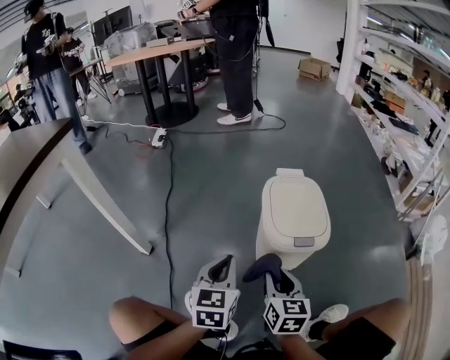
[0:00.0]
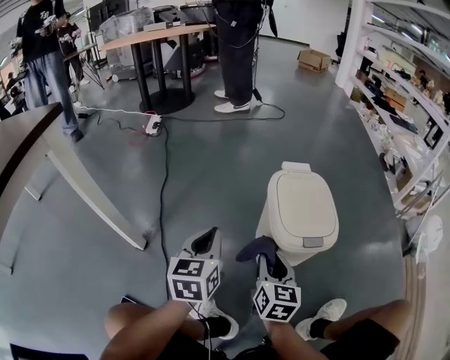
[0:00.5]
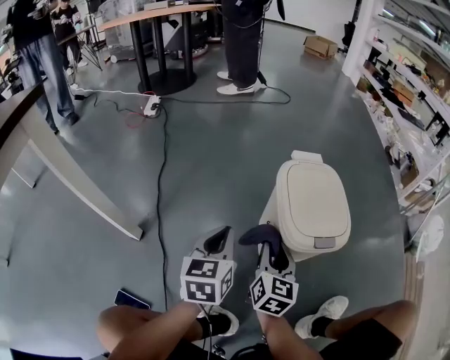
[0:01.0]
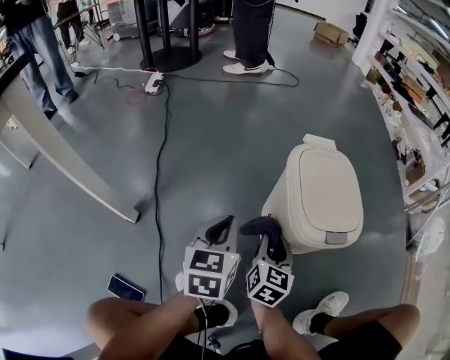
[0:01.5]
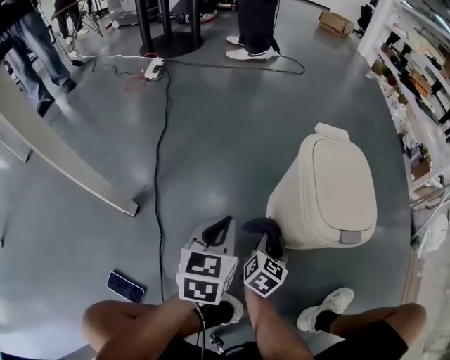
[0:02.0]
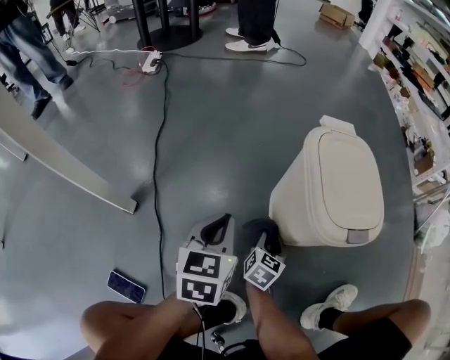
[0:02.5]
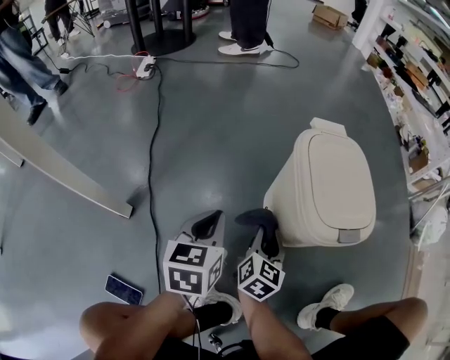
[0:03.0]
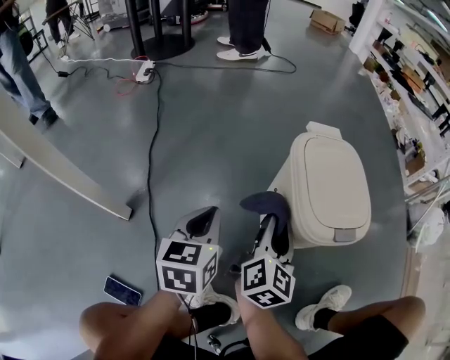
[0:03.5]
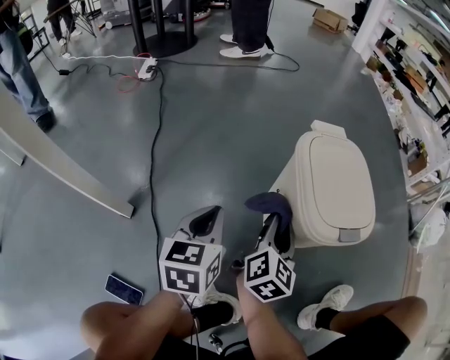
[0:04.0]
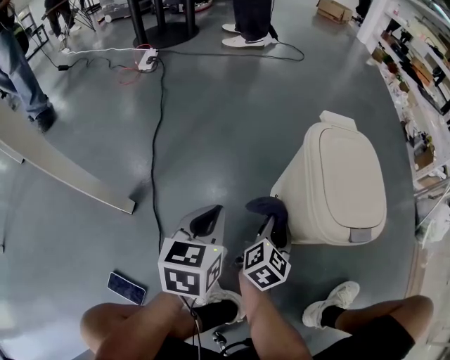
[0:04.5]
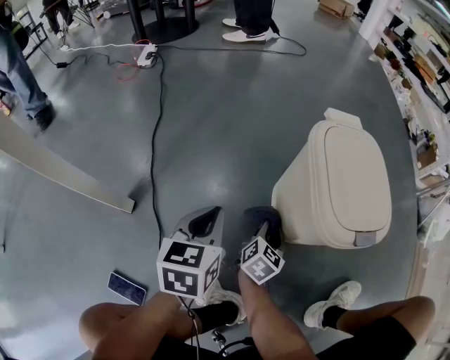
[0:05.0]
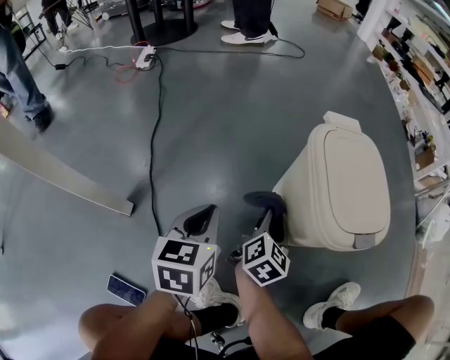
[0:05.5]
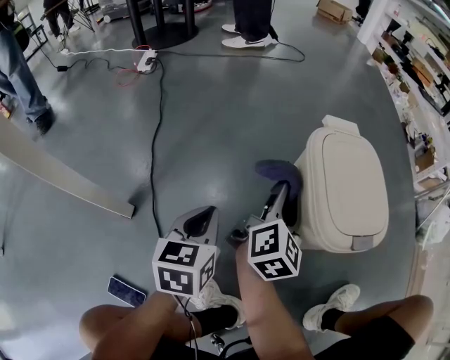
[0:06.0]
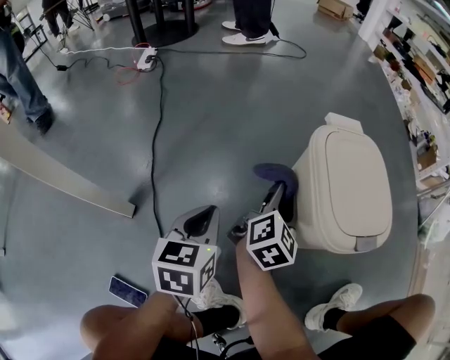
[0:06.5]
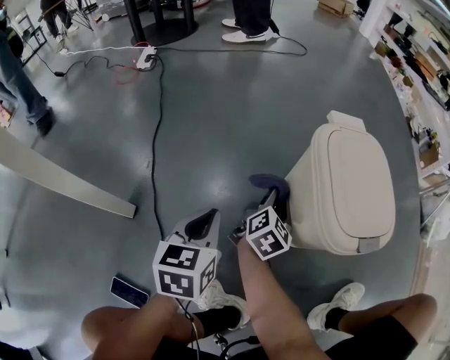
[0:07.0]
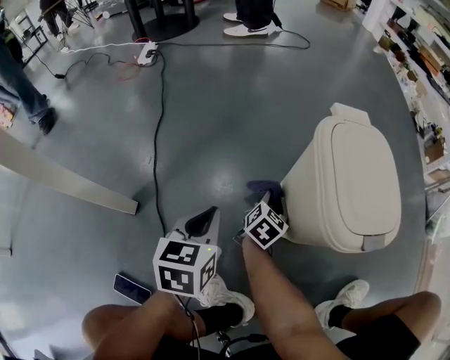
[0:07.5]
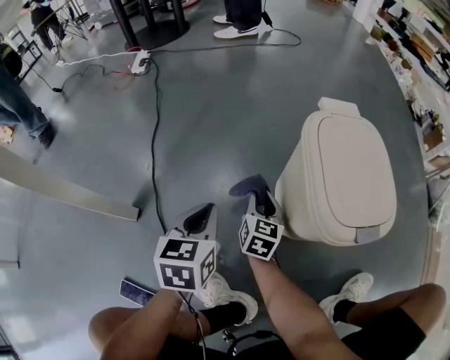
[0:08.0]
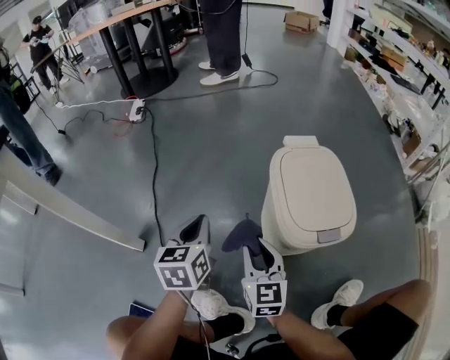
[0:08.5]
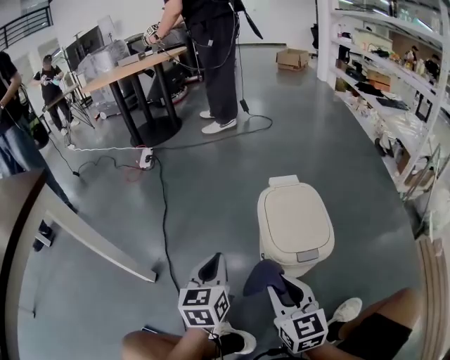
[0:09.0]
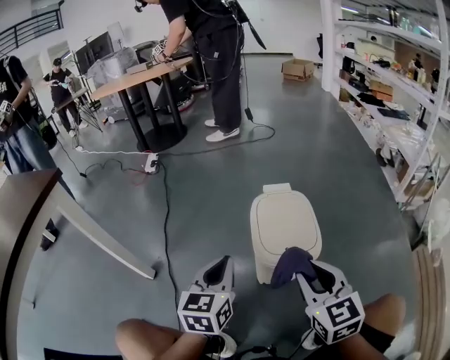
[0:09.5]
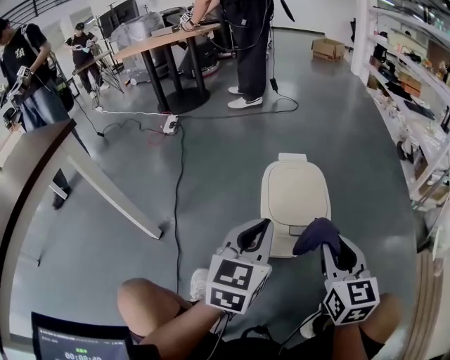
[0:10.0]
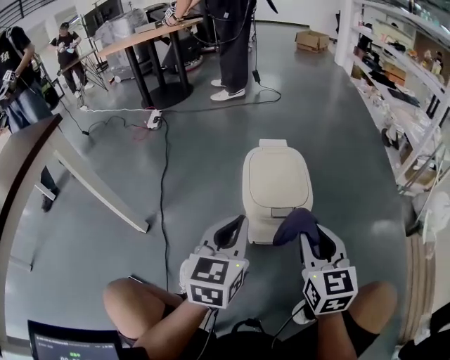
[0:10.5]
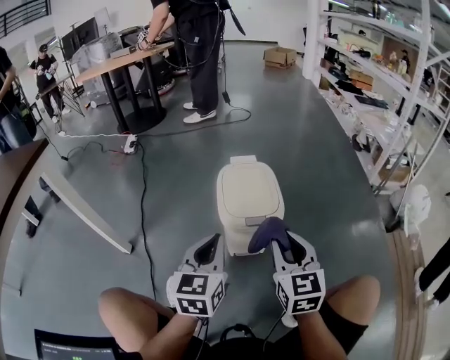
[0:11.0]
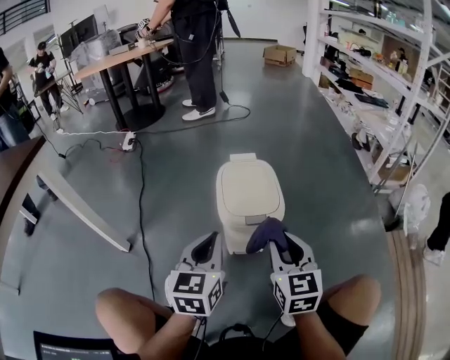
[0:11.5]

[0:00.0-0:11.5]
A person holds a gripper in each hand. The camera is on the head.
0:00.0 to 0:02.0: The left gripper moves downward, forward and to the left, about 15 cm; the right gripper moves downward and forward, roughly 20 cm, and turns by about 30 degrees.
0:02.0 to 0:04.0: The right gripper shifts approximately 10 cm upward, and swivels approximately 20 degrees.
0:04.0 to 0:06.0: The right gripper is displaced forward by approximately 5 cm, and goes downward and returns, some 15 cm each way.
0:06.0 to 0:07.5: The right gripper is displaced downward by about 20 cm, and changes its angle by about 30 degrees.
0:07.5 to 0:09.5: The right gripper shifts roughly 50 cm upward and backward, and changes its angle by roughly 50 degrees; the left gripper travels upward and to the right by approximately 25 cm, and rotates about 20 degrees.
0:09.5 to 0:11.5: The left gripper goes roughly 10 cm to the right and backward. The right gripper changes place by some 5 cm.

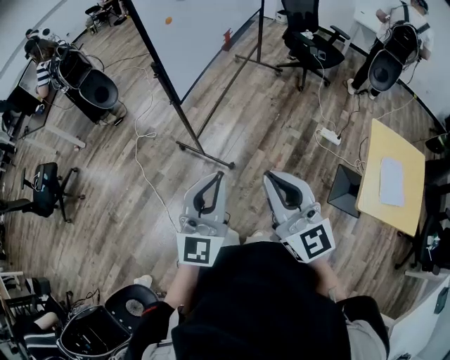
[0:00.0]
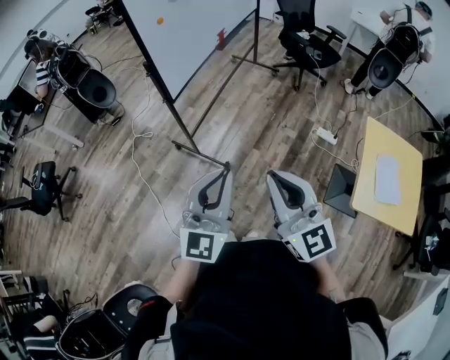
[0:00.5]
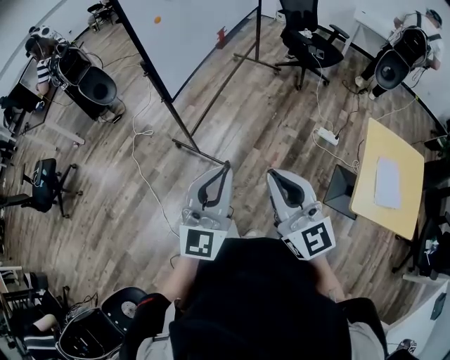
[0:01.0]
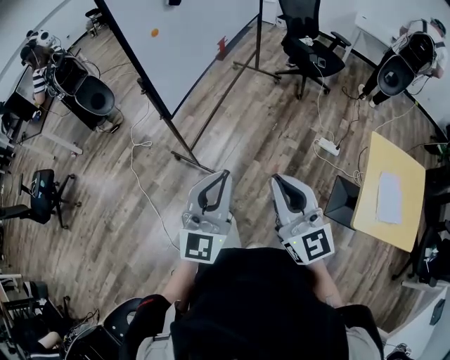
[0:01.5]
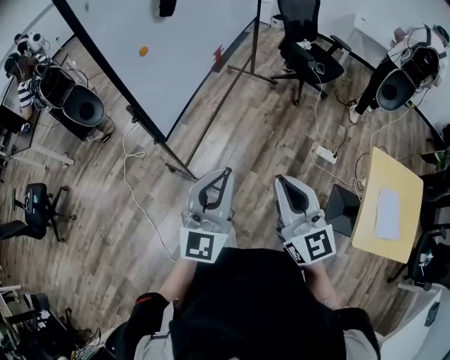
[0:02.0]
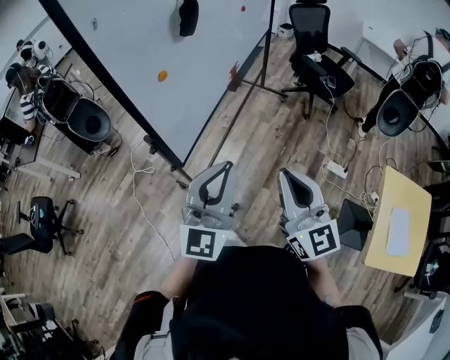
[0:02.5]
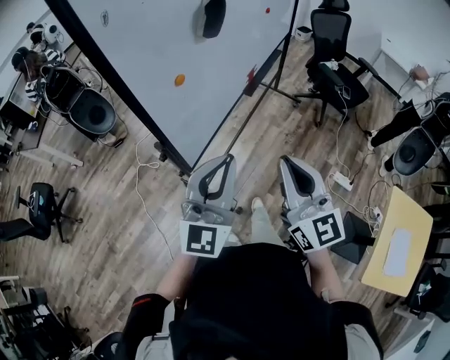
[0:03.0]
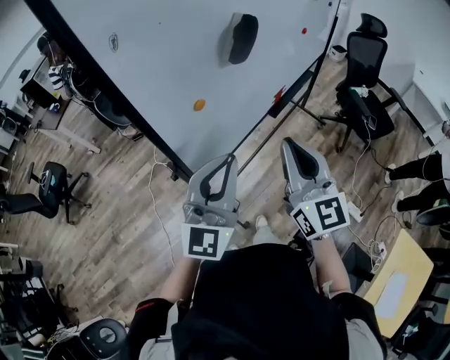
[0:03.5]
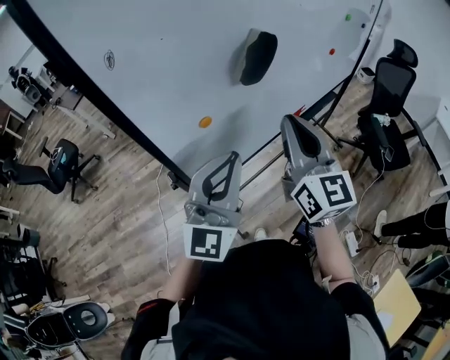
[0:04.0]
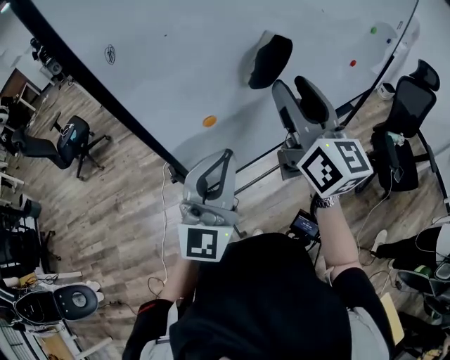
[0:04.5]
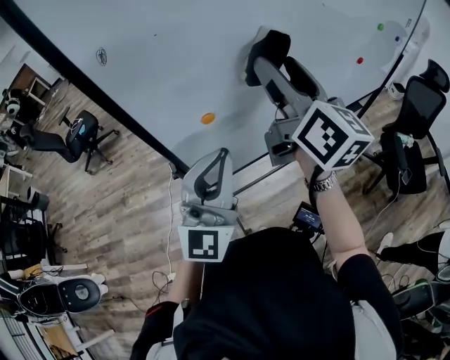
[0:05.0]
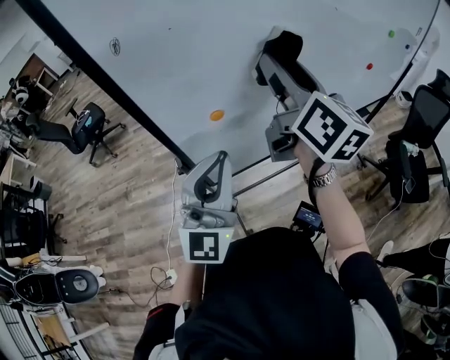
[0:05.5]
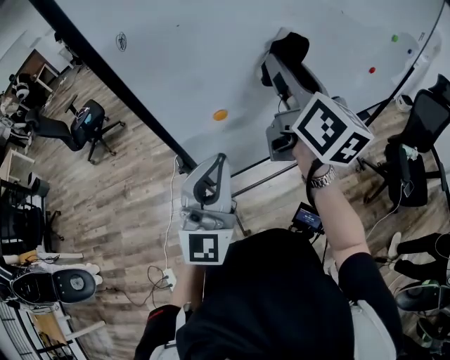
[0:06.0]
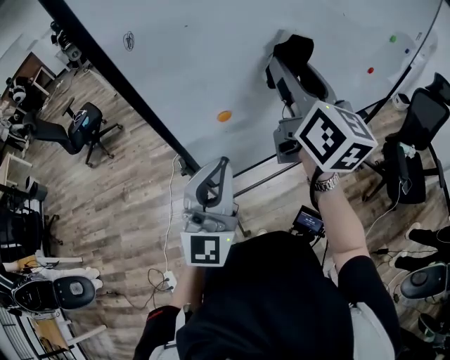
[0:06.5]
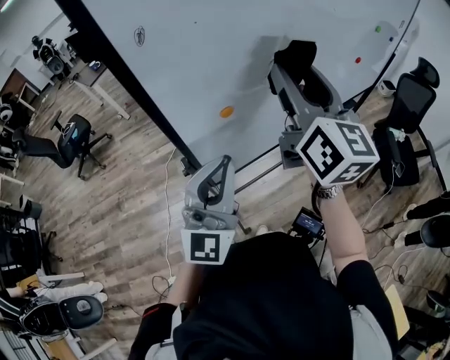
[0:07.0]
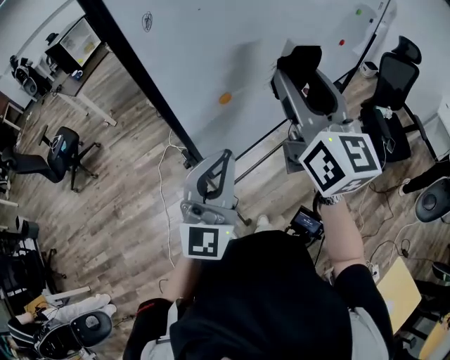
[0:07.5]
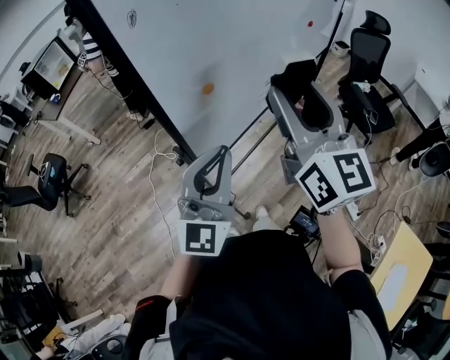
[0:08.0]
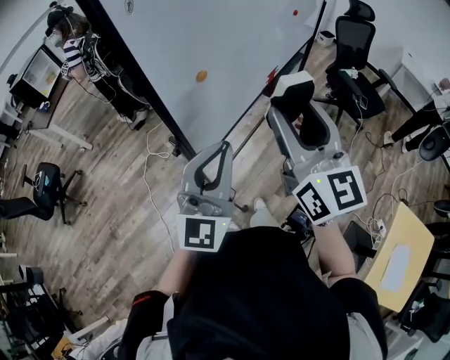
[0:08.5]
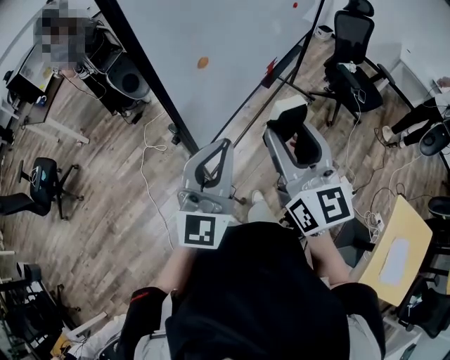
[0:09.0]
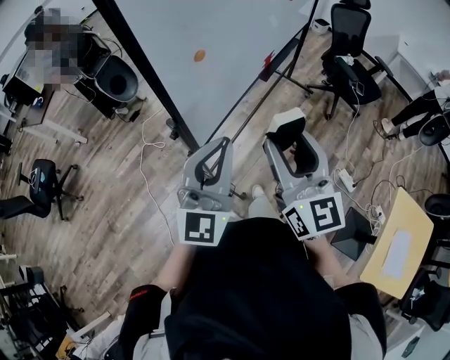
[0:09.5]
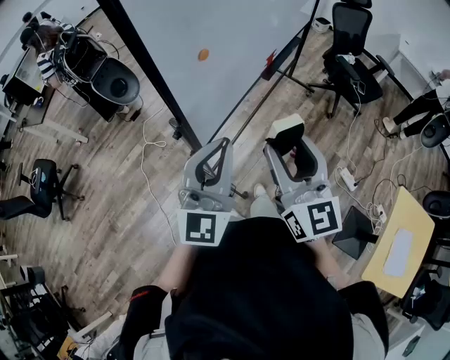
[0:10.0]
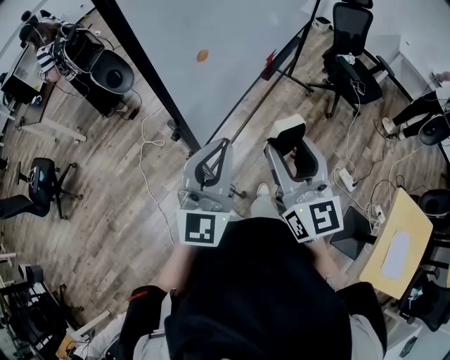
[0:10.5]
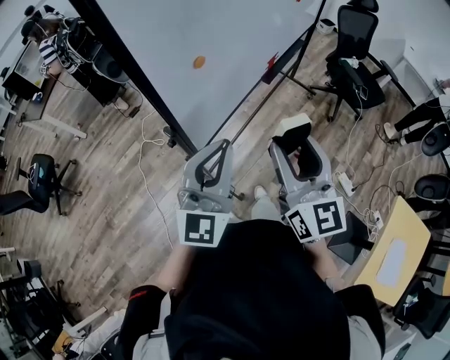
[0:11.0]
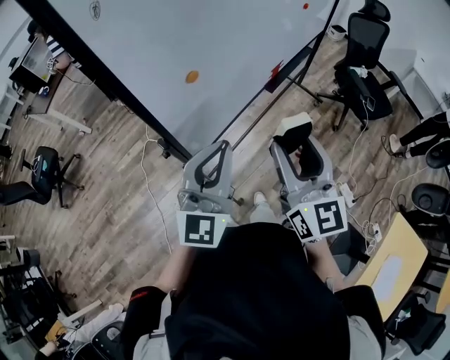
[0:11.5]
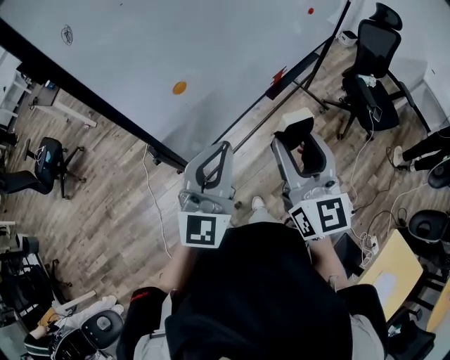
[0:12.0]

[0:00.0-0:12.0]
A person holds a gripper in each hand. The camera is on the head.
0:00.0 to 0:02.0: Both grippers move forward, some 20 cm.
0:02.0 to 0:04.0: Both grippers move forward, approximately 40 cm. The right gripper rotates about 20 degrees, while the left gripper changes its angle by some 30 degrees.
0:04.0 to 0:06.0: The right gripper is displaced forward, upward and to the left by roughly 15 cm, changes its angle by roughly 30 degrees, and opens. The left gripper ends up about 5 cm from where it was, and swivels about 20 degrees.
0:06.0 to 0:08.0: The left gripper goes about 5 cm backward, and swivels roughly 30 degrees; the right gripper shifts about 20 cm backward, and swivels about 30 degrees.
0:08.0 to 0:10.0: The right gripper goes about 20 cm downward and backward; the left gripper shifts by about 5 cm.
0:10.0 to 0:12.0: Both grippers move forward and to the right, roughly 15 cm.

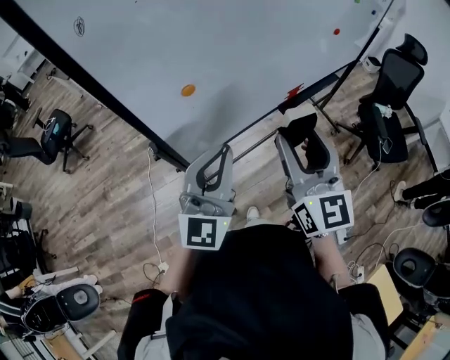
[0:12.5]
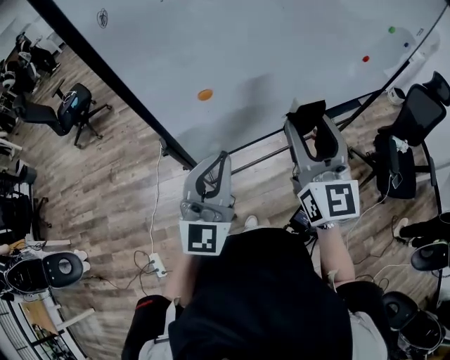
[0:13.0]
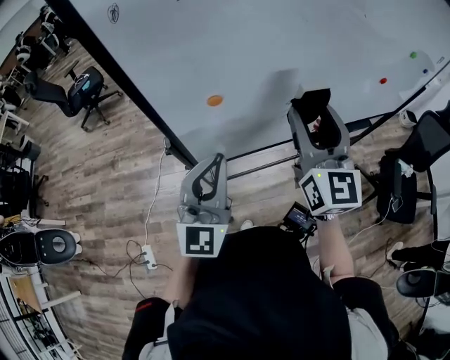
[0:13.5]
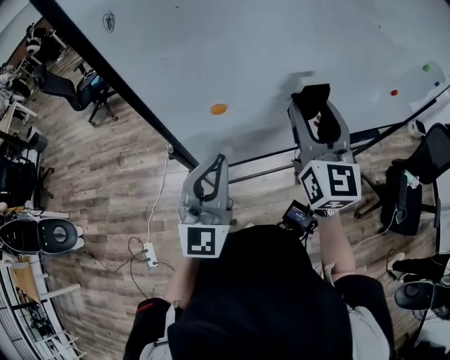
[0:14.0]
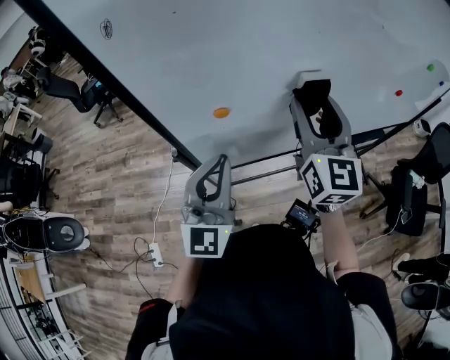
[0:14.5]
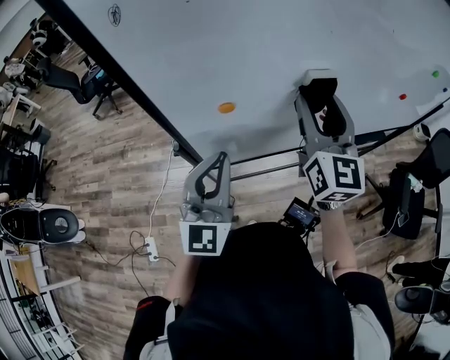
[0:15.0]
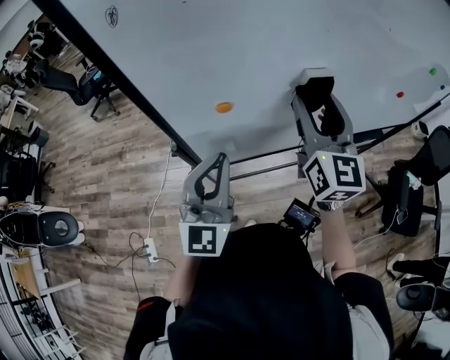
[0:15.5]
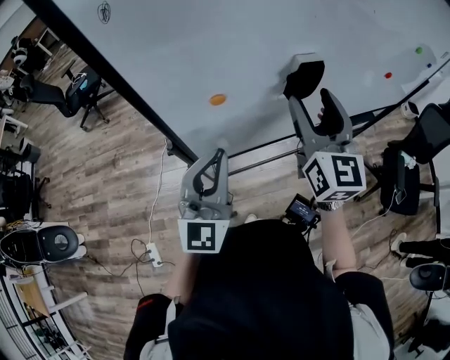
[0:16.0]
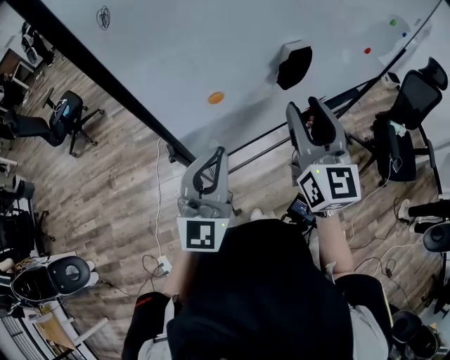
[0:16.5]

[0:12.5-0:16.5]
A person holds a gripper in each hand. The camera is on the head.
0:12.5 to 0:14.5: The right gripper moves forward, roughly 20 cm, while the left gripper shifts roughly 5 cm forward, and swivels some 20 degrees.
0:14.5 to 0:16.5: The right gripper goes approximately 10 cm backward.
